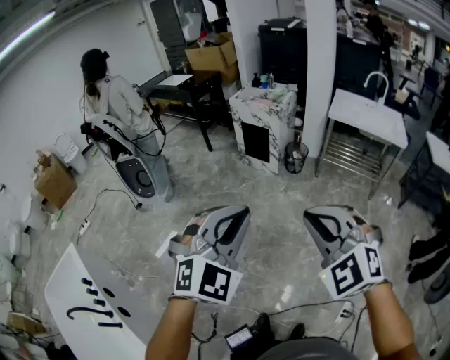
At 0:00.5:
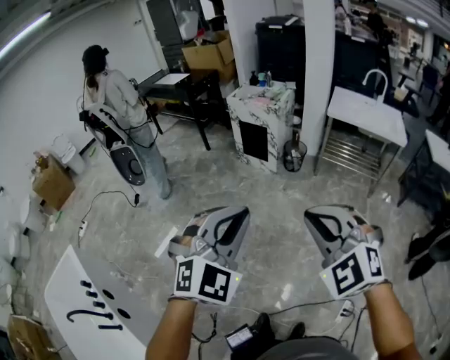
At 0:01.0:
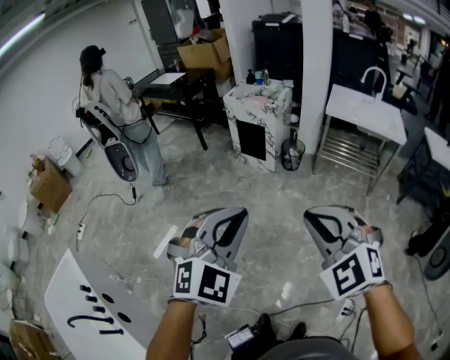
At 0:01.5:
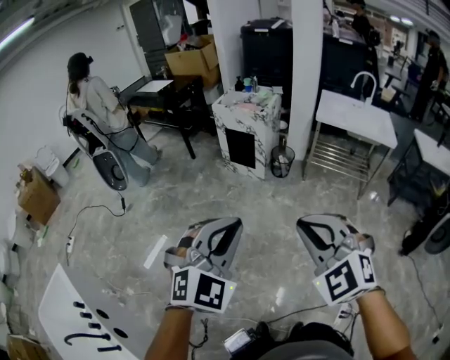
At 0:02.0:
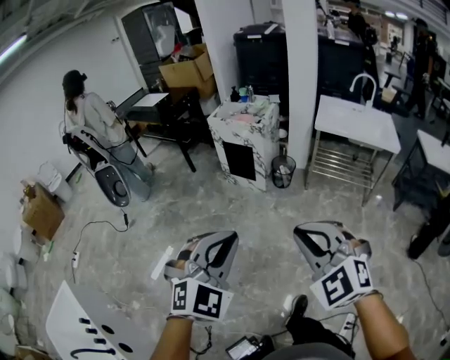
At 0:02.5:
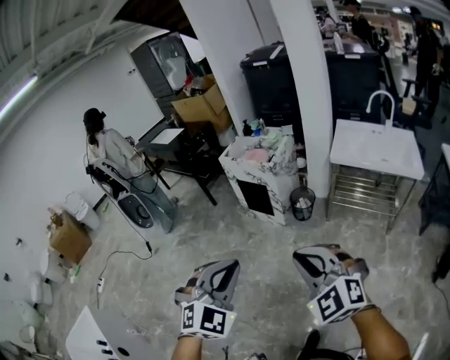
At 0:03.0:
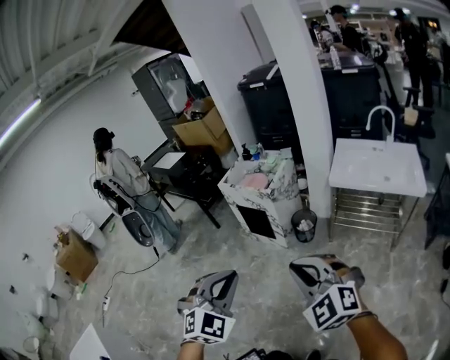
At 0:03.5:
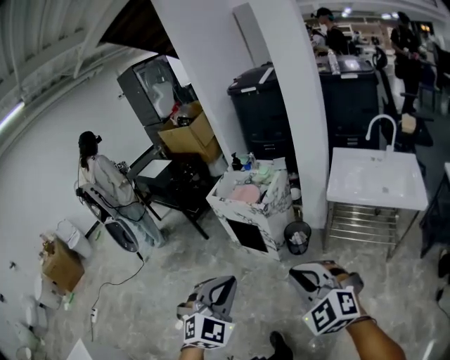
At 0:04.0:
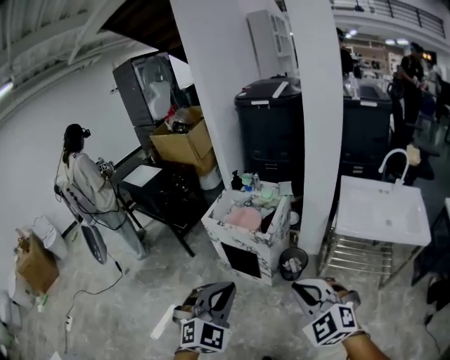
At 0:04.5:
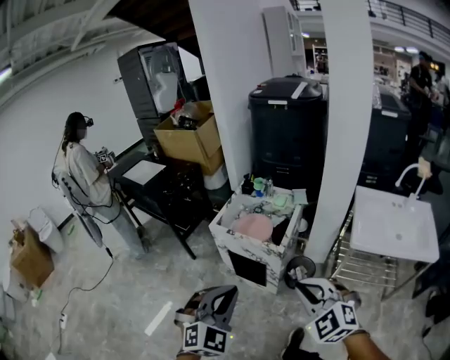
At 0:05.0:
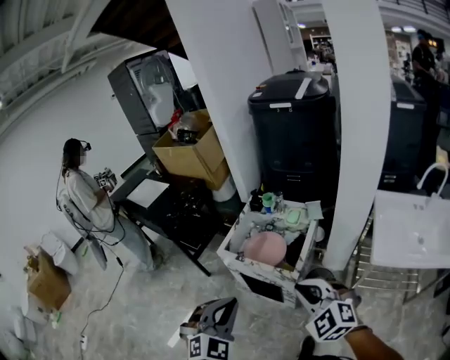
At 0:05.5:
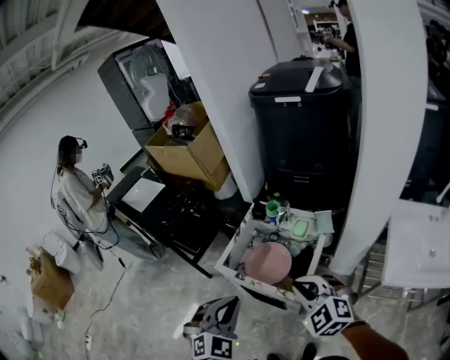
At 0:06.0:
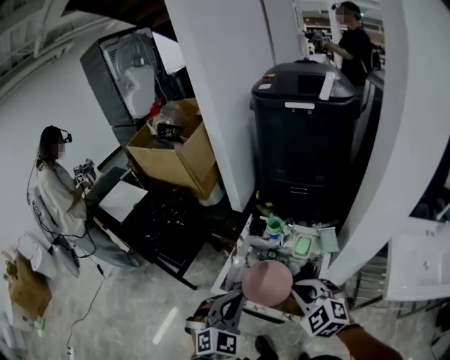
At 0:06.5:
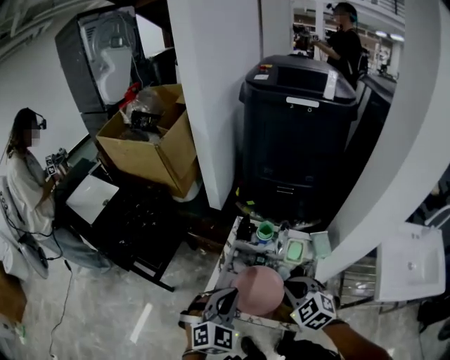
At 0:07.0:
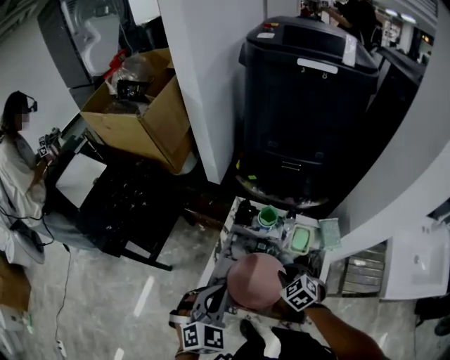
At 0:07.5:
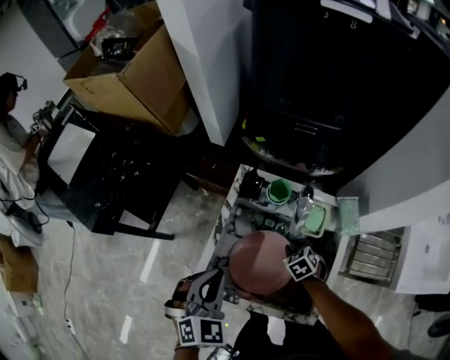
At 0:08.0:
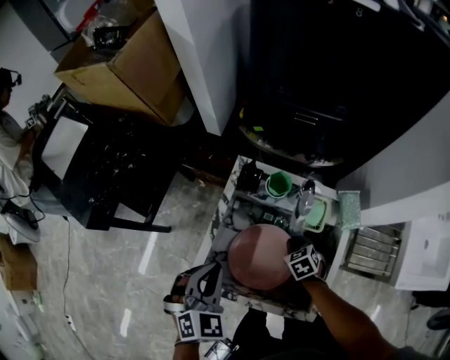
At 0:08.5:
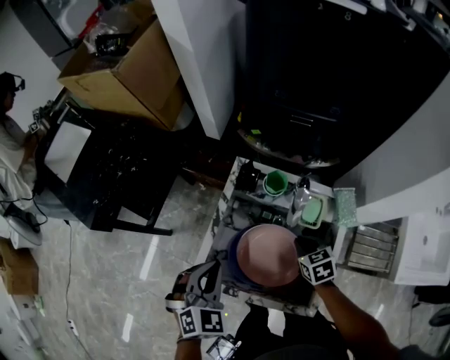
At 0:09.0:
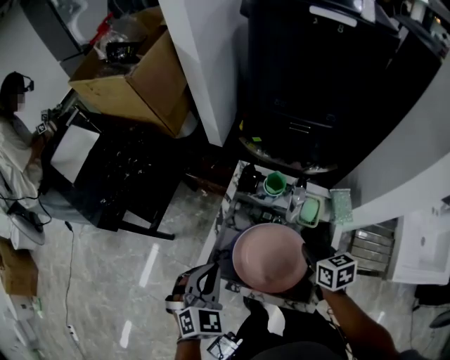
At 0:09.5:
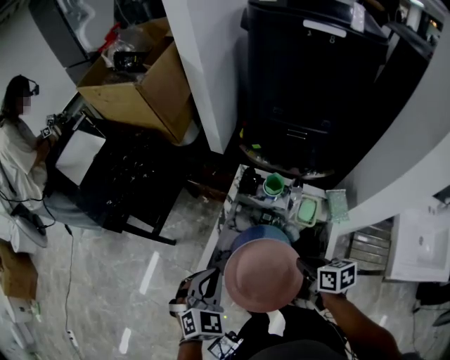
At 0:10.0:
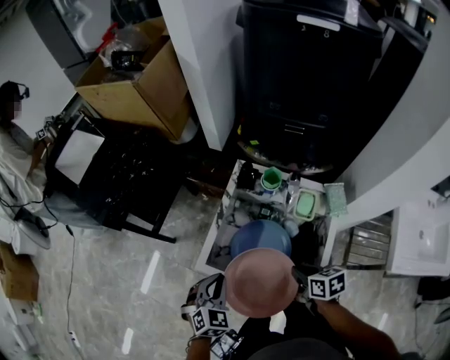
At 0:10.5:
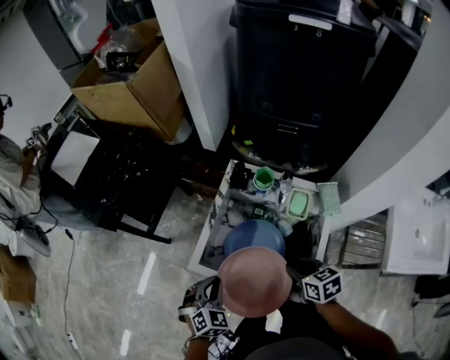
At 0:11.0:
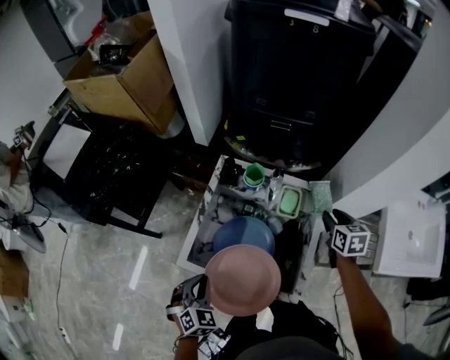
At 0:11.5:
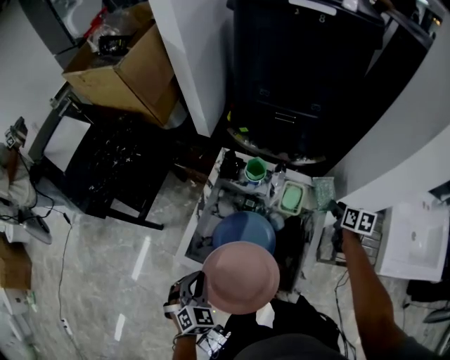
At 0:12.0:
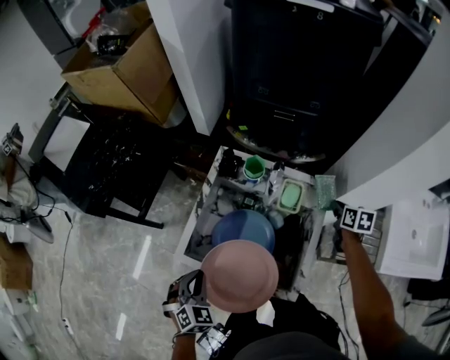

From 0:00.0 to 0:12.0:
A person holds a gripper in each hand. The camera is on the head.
From 0:00.0 to 0:02.0: Both grippers move forward, roughly 10 cm.
From 0:02.0 to 0:04.0: The pair of grippers is taken forward, about 50 cm.
From 0:04.0 to 0:06.0: Both grippers are carried forward, about 50 cm.
From 0:06.0 to 0:08.0: The right gripper heads downward and forward, covering some 40 cm, and turns by some 50 degrees; the left gripper is displaced downward and forward by roughly 20 cm.
From 0:08.0 to 0:10.0: The right gripper moves backward and upward, some 20 cm, and turns by approximately 40 degrees. The left gripper is displaced backward and downward by about 10 cm.
From 0:10.0 to 0:12.0: The right gripper moves to the right and forward, approximately 30 cm, rotates roughly 30 degrees, and opens and closes again.

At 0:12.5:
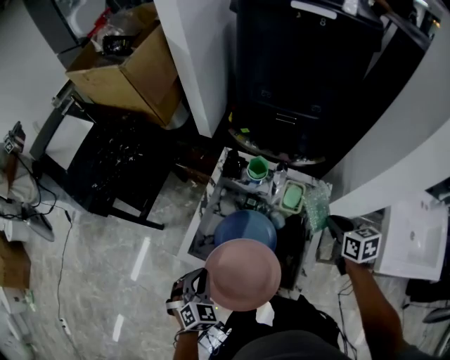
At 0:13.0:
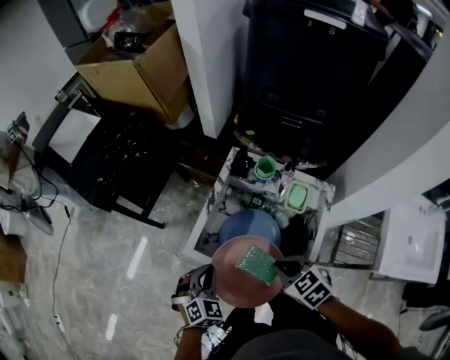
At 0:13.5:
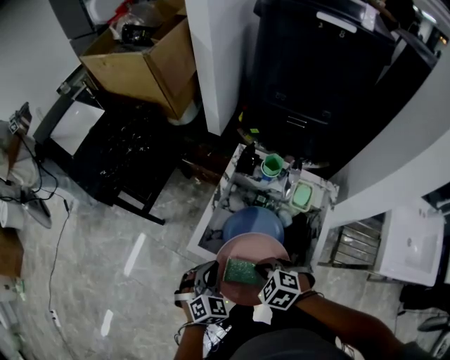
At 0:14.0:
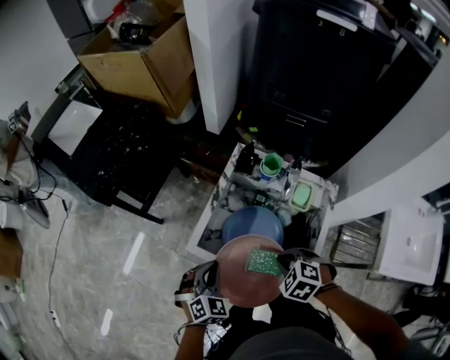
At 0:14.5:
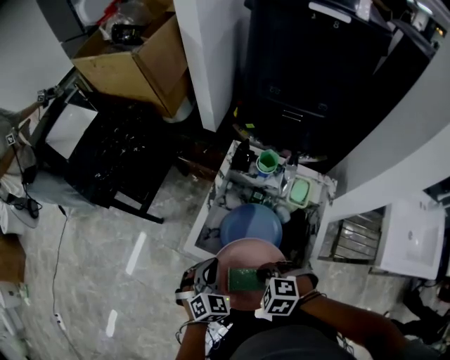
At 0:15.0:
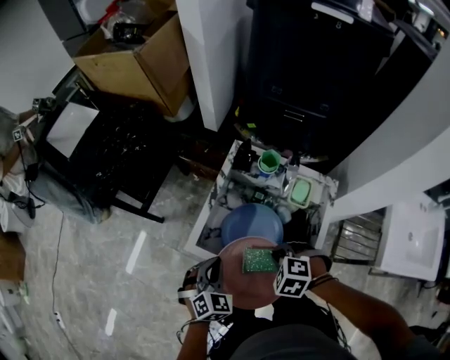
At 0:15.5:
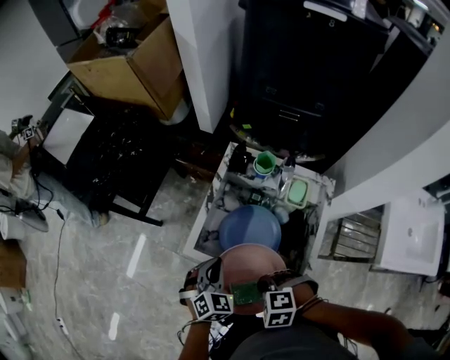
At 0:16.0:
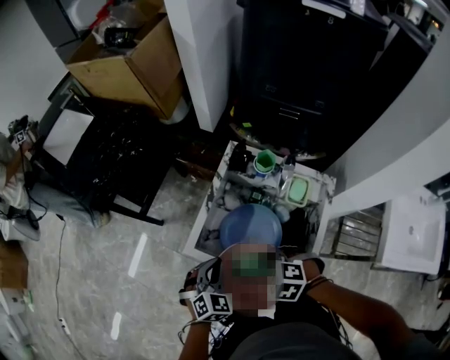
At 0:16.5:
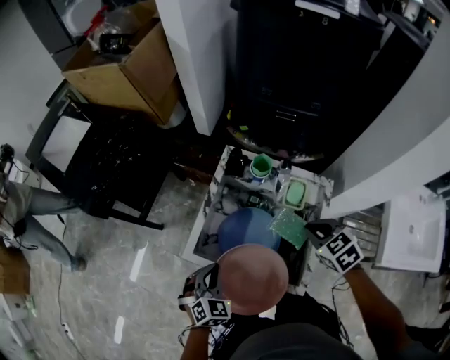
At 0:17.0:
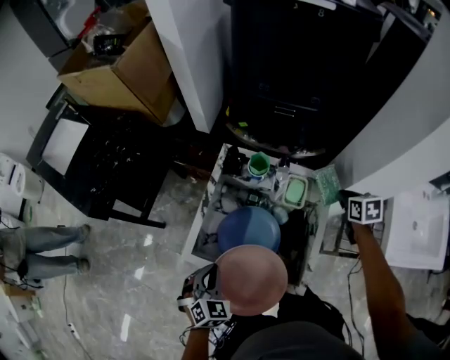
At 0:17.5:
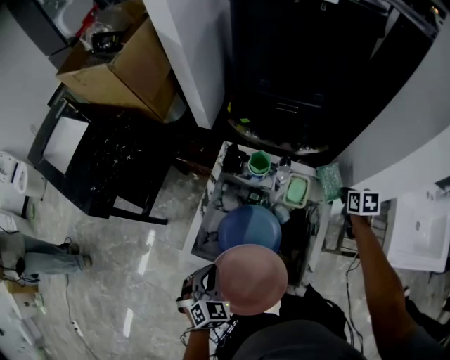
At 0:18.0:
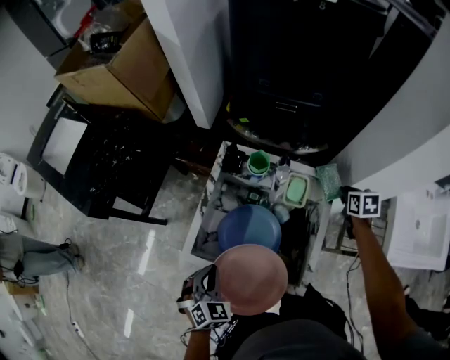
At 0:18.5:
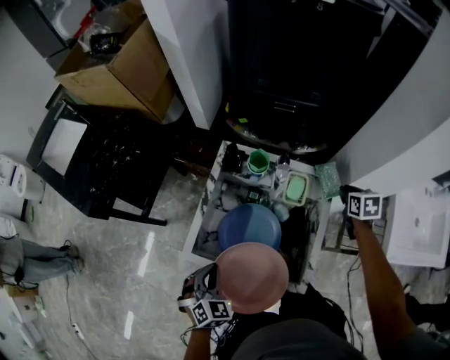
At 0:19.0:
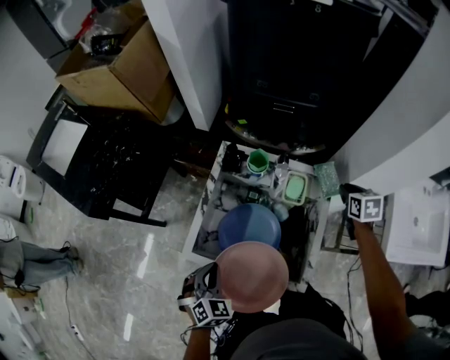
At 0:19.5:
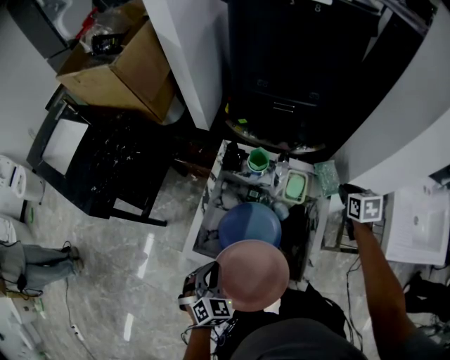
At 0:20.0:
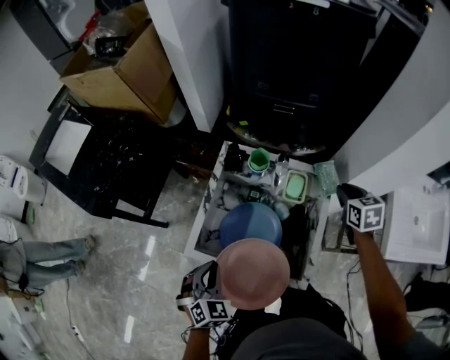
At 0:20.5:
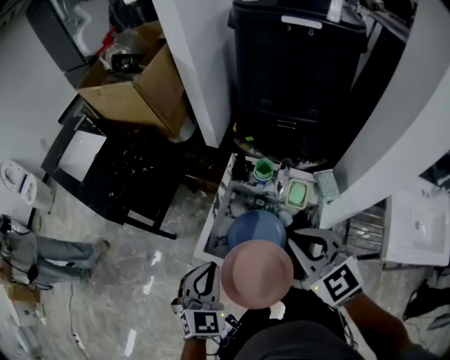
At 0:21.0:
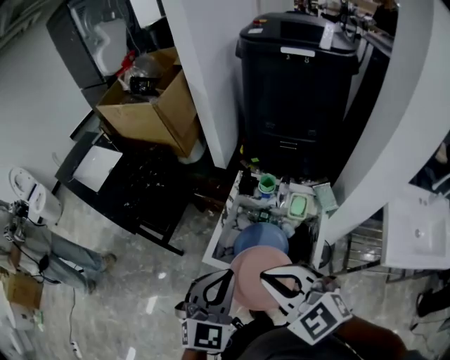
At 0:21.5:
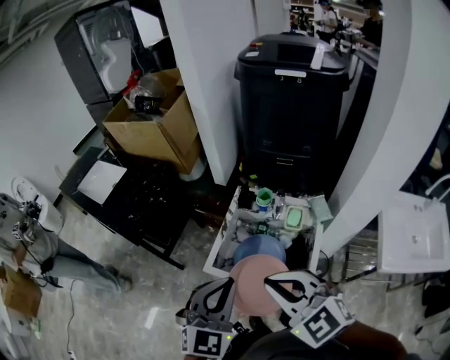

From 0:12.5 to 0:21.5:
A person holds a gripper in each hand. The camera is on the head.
From 0:12.5 to 0:14.5: The right gripper swings left and right, roughly 30 cm each way, with 2 reversals, and rotates around the line of its fingers by some 70 degrees, counterclockwise from behind.
From 0:14.5 to 0:17.0: The right gripper travels upward and back again, approximately 10 cm each way, and rolls clockwise, seen from behind, by about 70 degrees.
From 0:17.0 to 0:19.5: The grippers move only a little.
From 0:19.5 to 0:21.5: The left gripper shifts about 30 cm upward, and rotates roughly 30 degrees, while the right gripper is displaced to the left, upward and backward by some 50 cm, and rotates about 70 degrees.

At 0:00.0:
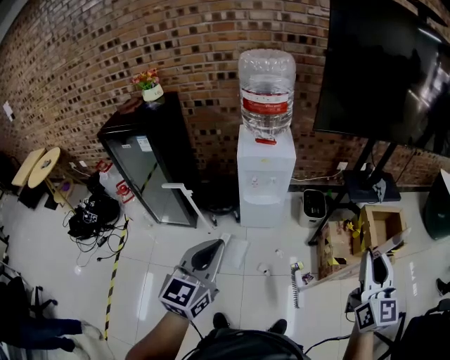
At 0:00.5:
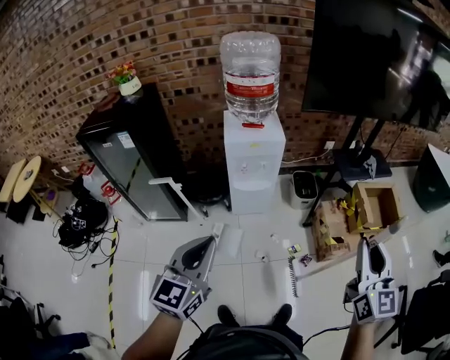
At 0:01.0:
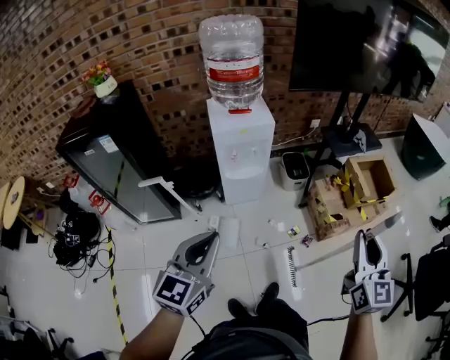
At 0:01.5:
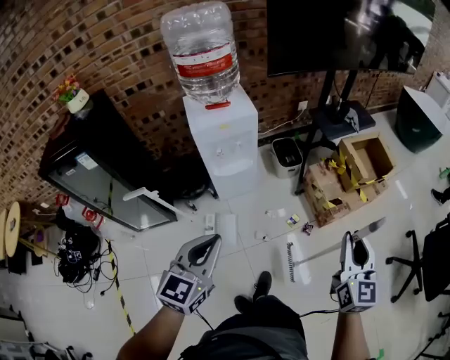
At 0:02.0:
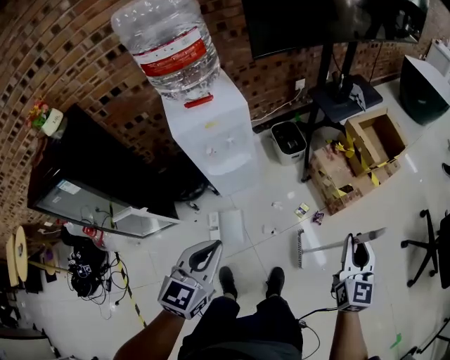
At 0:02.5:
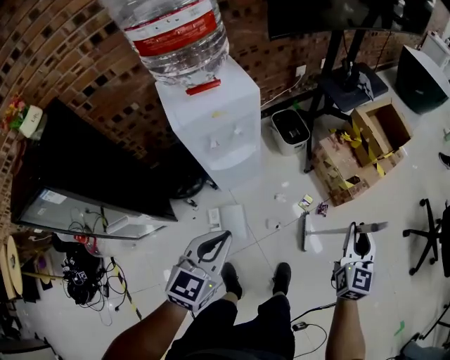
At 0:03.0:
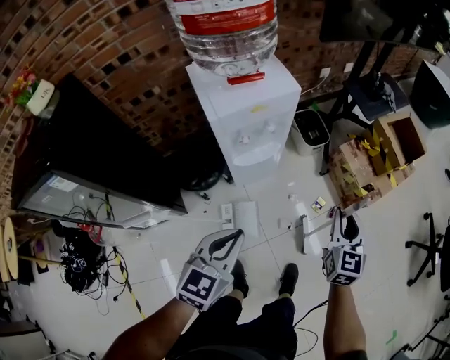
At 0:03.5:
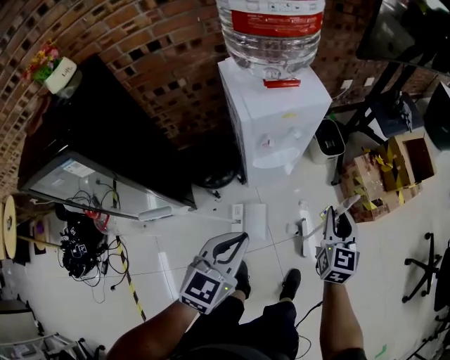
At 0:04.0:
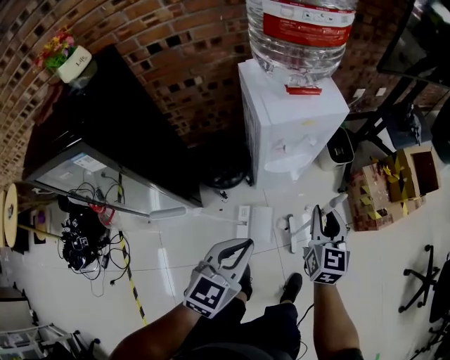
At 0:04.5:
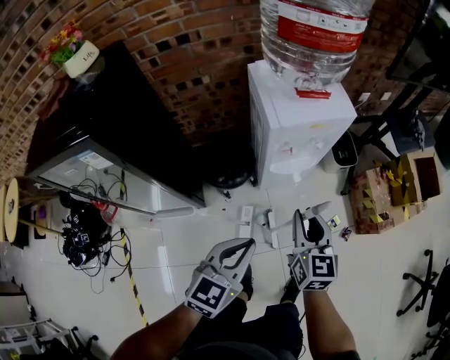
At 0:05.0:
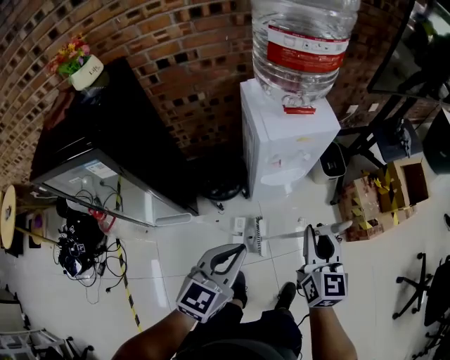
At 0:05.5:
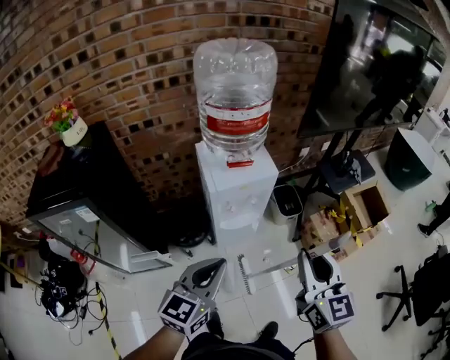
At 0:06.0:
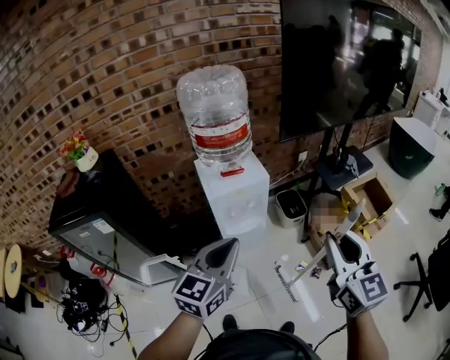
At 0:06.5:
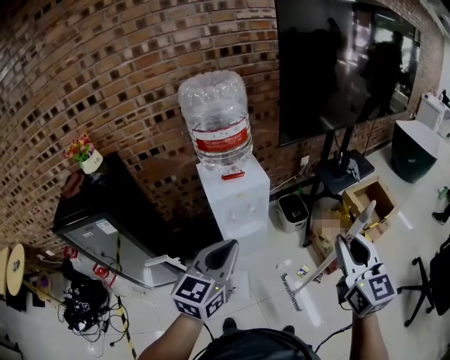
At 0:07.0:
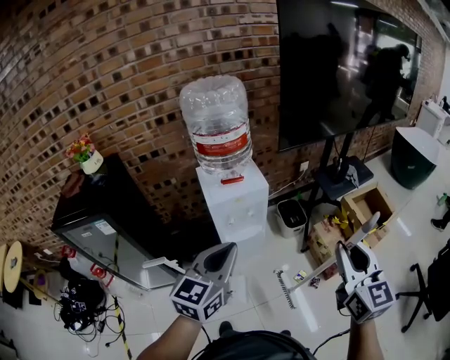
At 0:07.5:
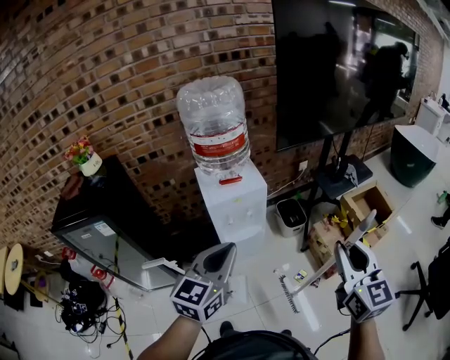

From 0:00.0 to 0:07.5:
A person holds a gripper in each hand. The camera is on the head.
From 0:00.0 to 0:02.0: Both grippers travel together downward, about 25 cm. The right gripper swivels about 30 degrees. The left gripper swivels roughly 30 degrees.
From 0:02.0 to 0:04.0: The right gripper goes roughly 50 cm to the left. Meanwhile the left gripper is displaced to the left by approximately 25 cm.
From 0:04.0 to 0:05.5: Both grippers move upward, about 25 cm.
From 0:05.5 to 0:07.5: The grippers both shift to the right and upward by about 20 cm.
